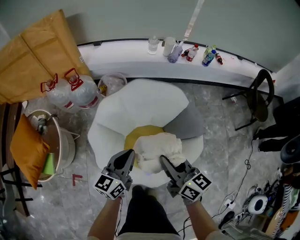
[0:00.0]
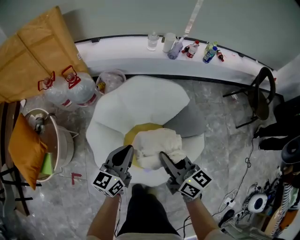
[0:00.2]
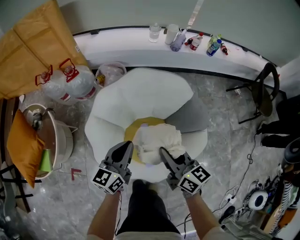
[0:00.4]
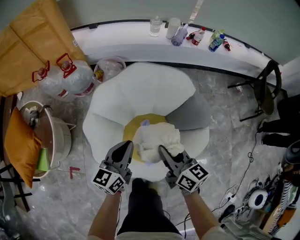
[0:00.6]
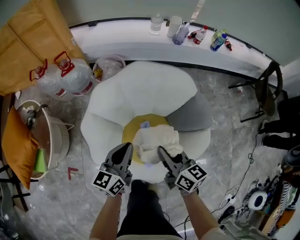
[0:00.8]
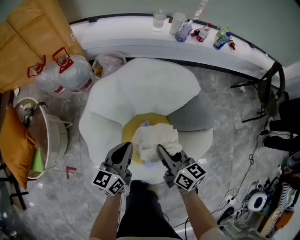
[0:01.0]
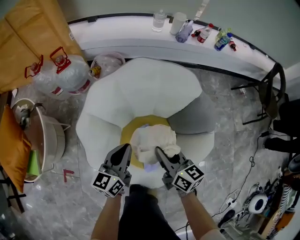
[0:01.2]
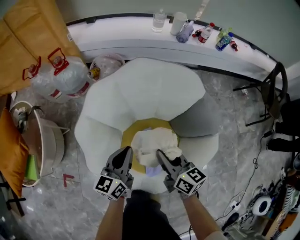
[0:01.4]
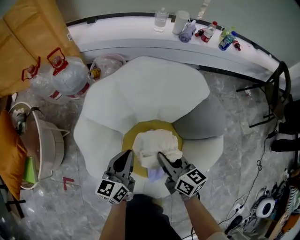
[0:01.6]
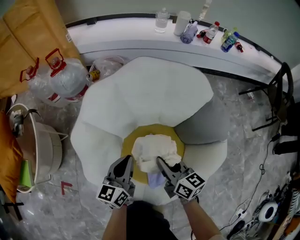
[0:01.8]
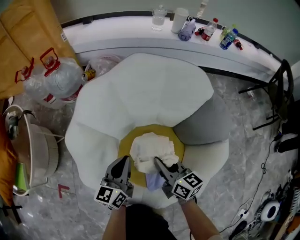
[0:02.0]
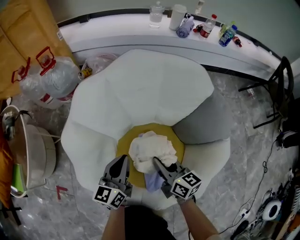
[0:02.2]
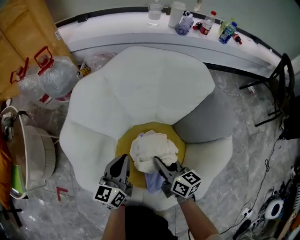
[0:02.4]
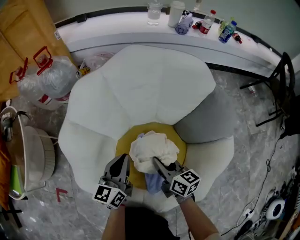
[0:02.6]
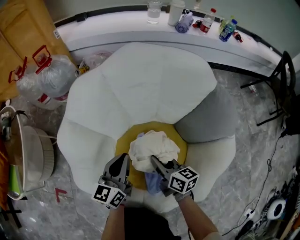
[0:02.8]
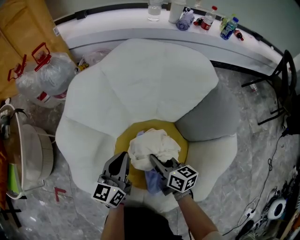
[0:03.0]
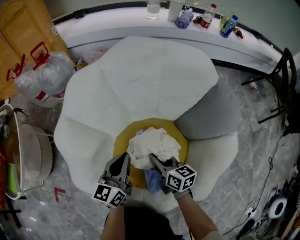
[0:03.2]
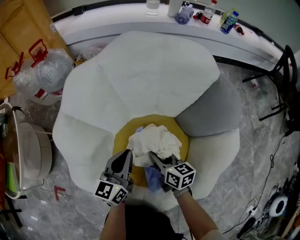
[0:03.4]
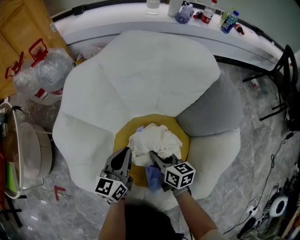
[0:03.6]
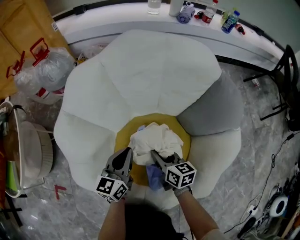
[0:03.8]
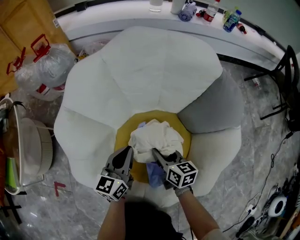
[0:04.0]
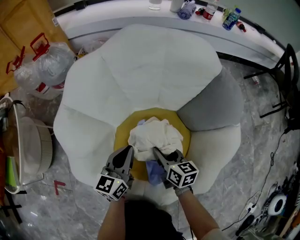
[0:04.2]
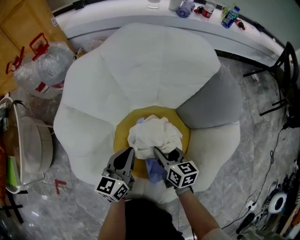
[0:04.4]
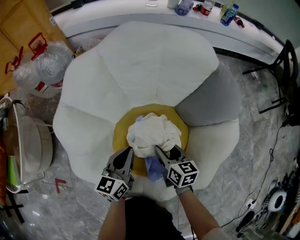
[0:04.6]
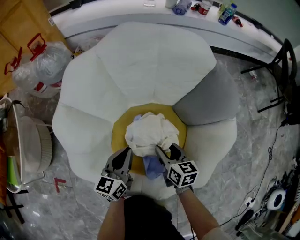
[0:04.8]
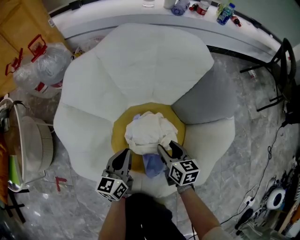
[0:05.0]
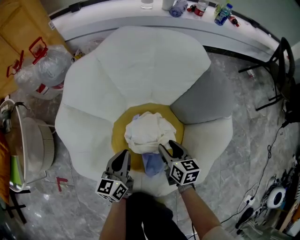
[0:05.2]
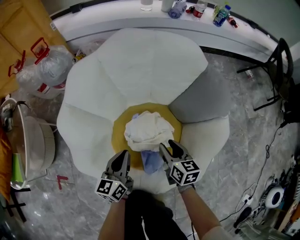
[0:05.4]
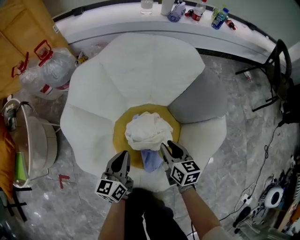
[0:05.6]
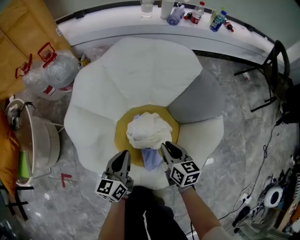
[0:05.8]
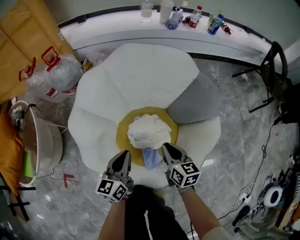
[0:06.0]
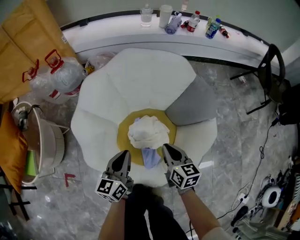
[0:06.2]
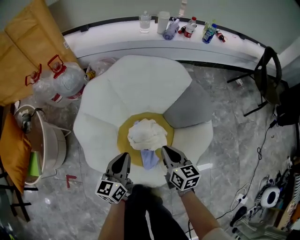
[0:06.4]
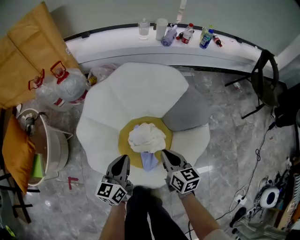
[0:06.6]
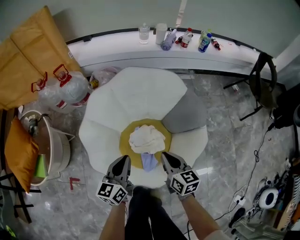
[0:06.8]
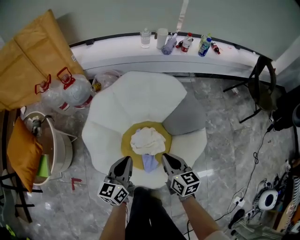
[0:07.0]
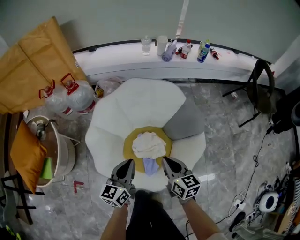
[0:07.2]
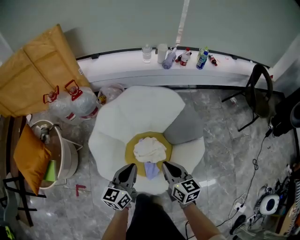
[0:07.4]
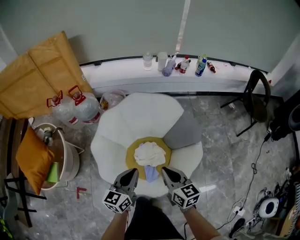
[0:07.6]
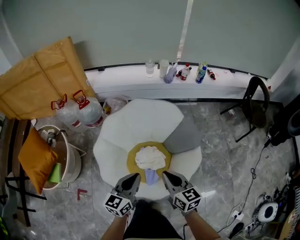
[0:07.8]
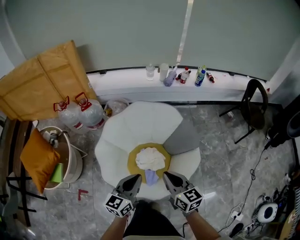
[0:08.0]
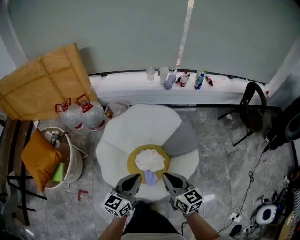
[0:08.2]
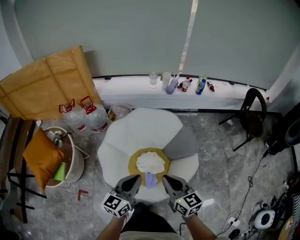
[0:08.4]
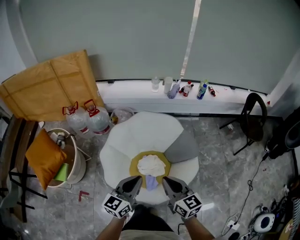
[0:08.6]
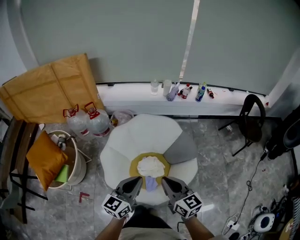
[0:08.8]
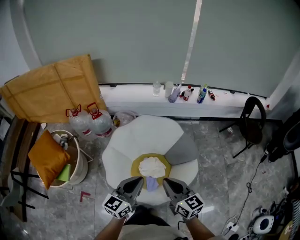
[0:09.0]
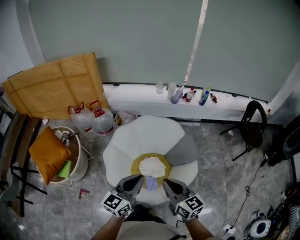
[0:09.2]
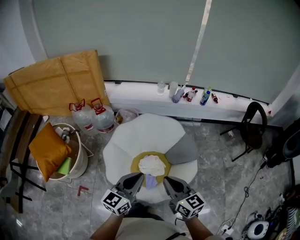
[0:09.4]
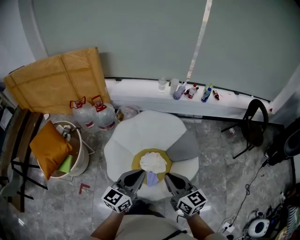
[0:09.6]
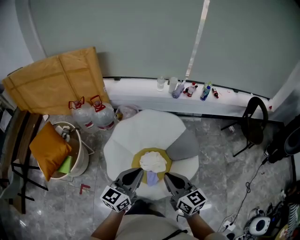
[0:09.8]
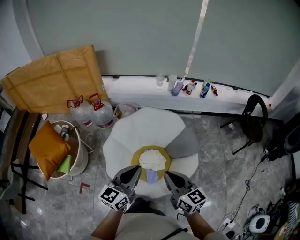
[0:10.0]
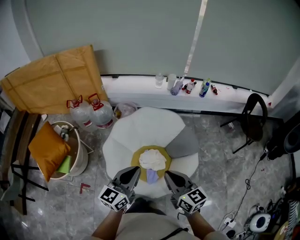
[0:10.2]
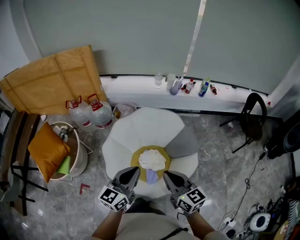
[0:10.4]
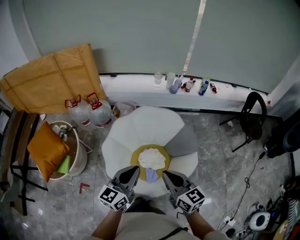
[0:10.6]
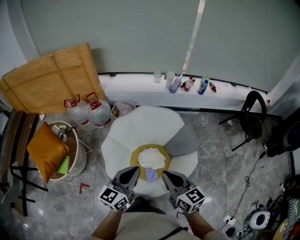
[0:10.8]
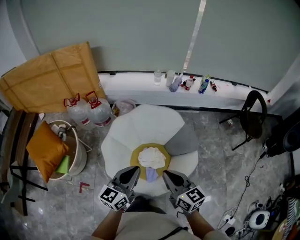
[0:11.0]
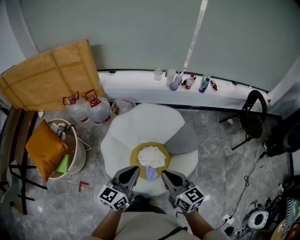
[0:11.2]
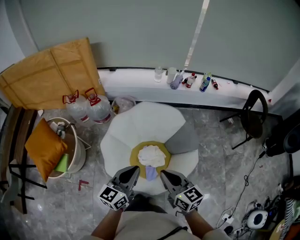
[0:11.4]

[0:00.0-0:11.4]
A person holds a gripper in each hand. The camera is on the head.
0.0 to 1.4 s: Both grippers travel together downward, some 25 cm.
1.4 to 2.8 s: The two grippers go about 20 cm downward.
2.8 to 4.2 s: The right gripper shifts by about 5 cm, and opens its fingers; the left gripper moves roughly 5 cm.
4.2 to 5.6 s: The left gripper shifts some 10 cm upward and backward. Meanwhile the right gripper goes approximately 10 cm upward and to the right.
5.6 to 7.2 s: The grippers both shift upward by roughly 30 cm. The right gripper closes its fingers.
7.2 to 8.6 s: Both grippers move upward and backward, roughly 25 cm.
8.6 to 10.0 s: Both grippers move upward, roughly 5 cm.
10.0 to 11.4 s: The right gripper ends up about 5 cm from where it was. Meanwhile the left gripper shifts by roughly 5 cm.

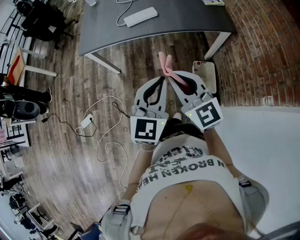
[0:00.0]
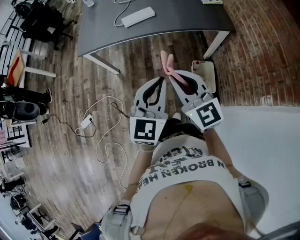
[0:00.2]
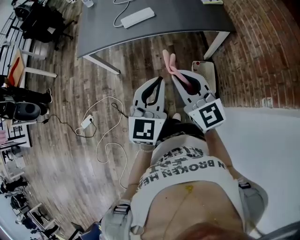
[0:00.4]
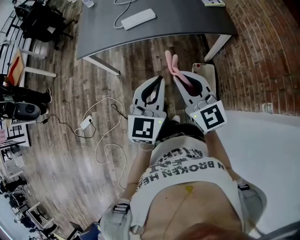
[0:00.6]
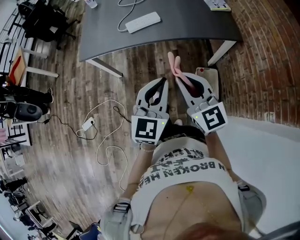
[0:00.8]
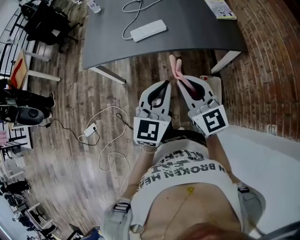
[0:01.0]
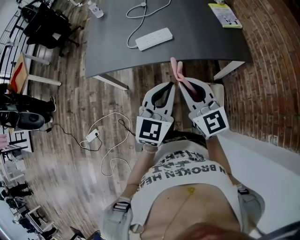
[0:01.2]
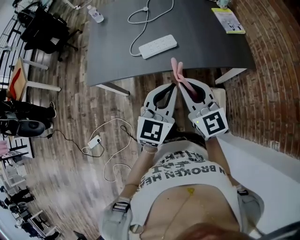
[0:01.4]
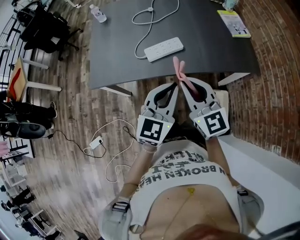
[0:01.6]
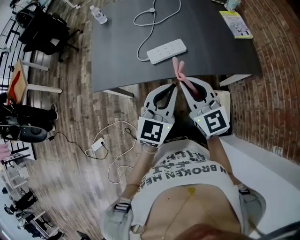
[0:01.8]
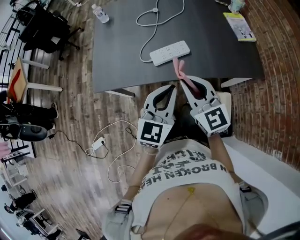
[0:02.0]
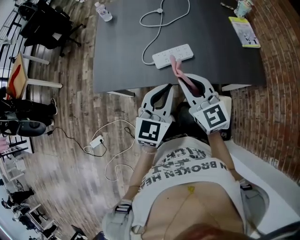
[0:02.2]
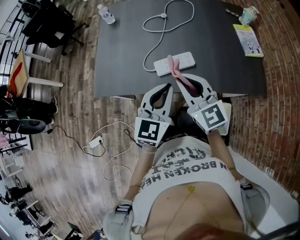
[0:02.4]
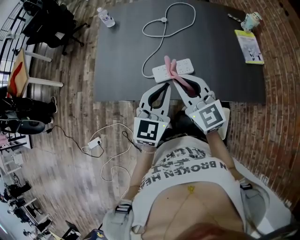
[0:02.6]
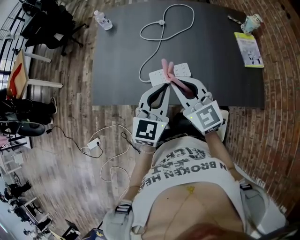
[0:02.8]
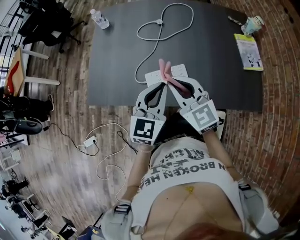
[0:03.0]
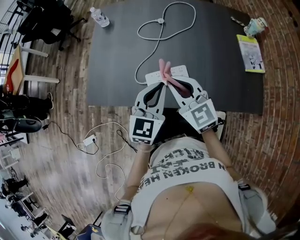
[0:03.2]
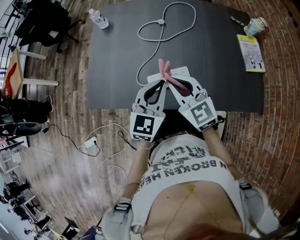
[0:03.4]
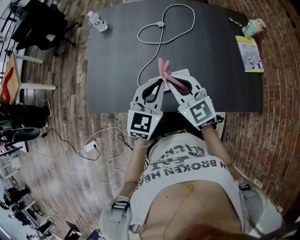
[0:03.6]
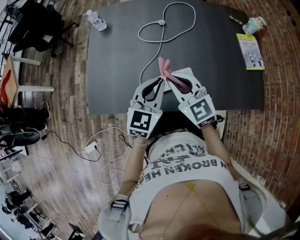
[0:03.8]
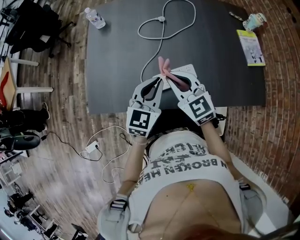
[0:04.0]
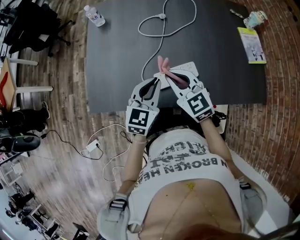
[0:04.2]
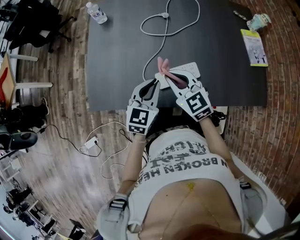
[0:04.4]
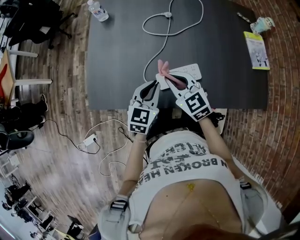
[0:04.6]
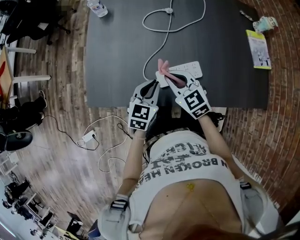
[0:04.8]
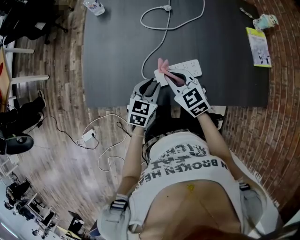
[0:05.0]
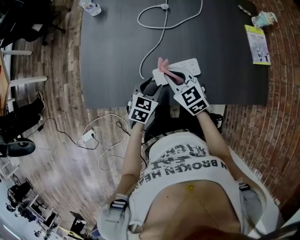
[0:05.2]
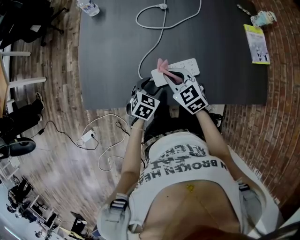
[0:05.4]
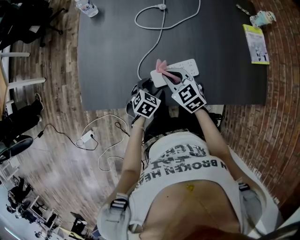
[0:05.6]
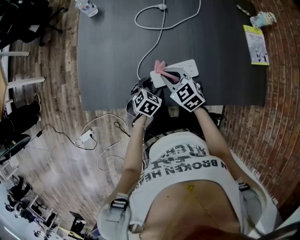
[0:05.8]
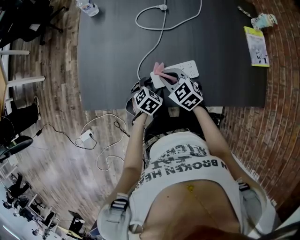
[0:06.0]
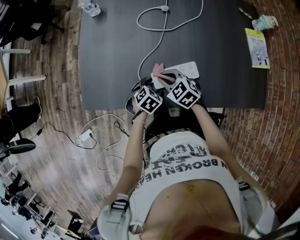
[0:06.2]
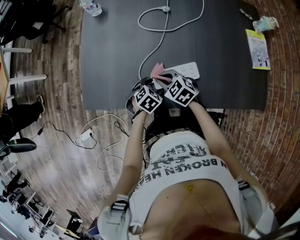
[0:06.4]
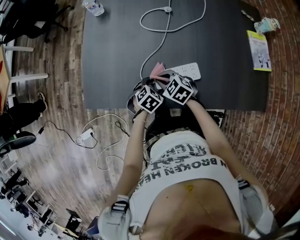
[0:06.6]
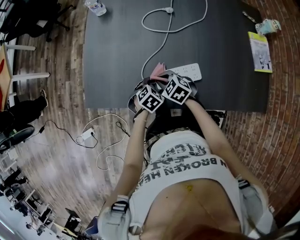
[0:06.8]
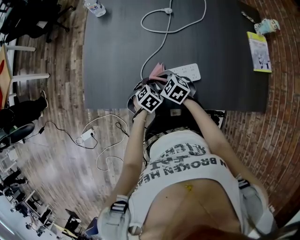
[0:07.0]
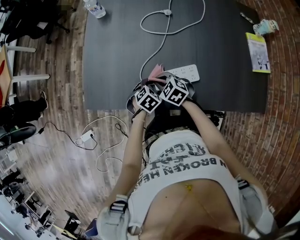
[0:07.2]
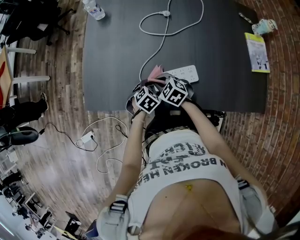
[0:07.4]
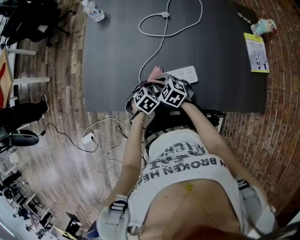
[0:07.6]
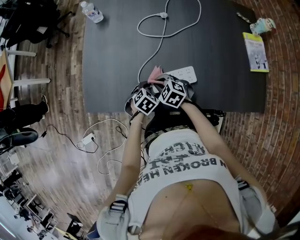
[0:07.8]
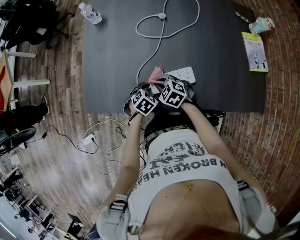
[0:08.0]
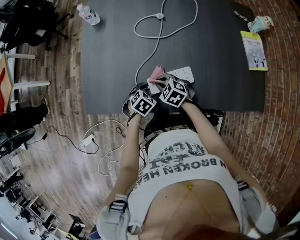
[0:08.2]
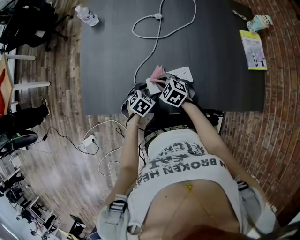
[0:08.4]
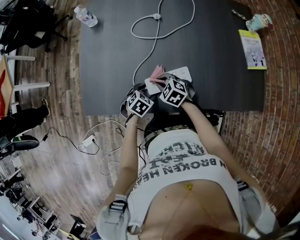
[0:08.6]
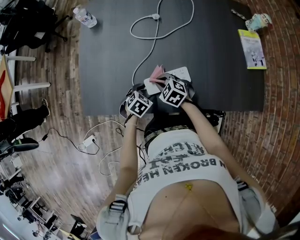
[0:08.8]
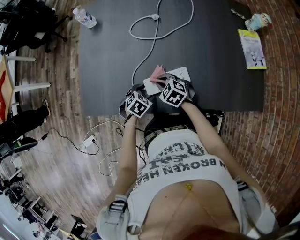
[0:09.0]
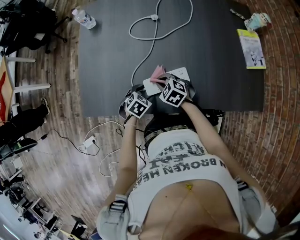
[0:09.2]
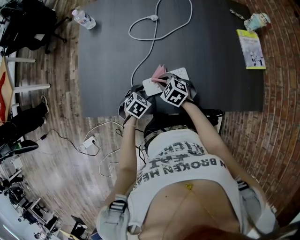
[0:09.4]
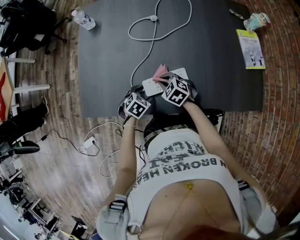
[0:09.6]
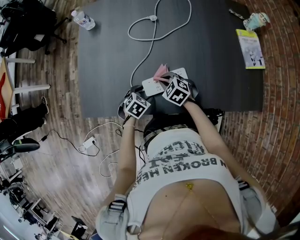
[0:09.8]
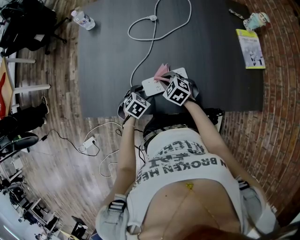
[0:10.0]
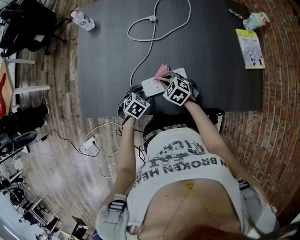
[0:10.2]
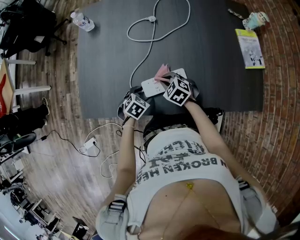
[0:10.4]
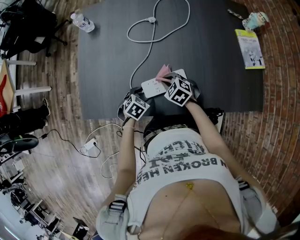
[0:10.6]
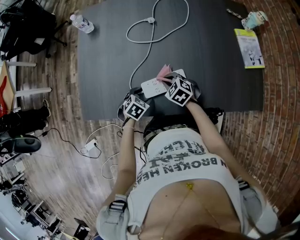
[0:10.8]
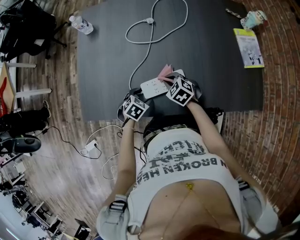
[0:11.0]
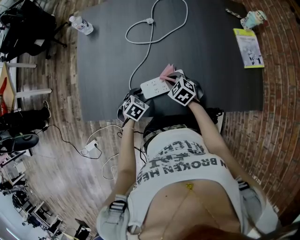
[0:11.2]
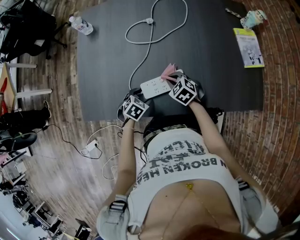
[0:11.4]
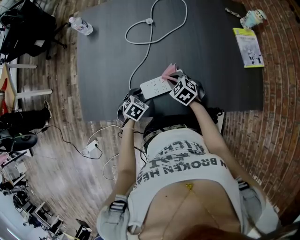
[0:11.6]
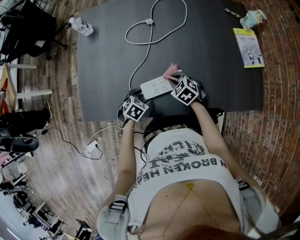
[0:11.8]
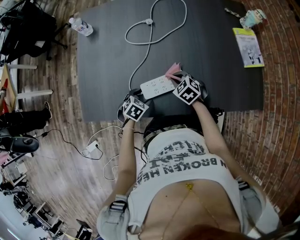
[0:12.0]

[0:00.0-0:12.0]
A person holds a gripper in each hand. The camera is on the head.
0.0 to 1.6 s: The grippers both shift forward by about 30 cm.
1.6 to 3.0 s: The two grippers go approximately 20 cm forward.
3.0 to 4.4 s: Both grippers travel together downward, to the left and forward, approximately 15 cm.
4.4 to 6.0 s: The right gripper travels downward by roughly 10 cm, and swivels approximately 20 degrees, while the left gripper travels downward by approximately 20 cm, points its fingers some 40 degrees further downward, and opens up.
6.0 to 7.6 s: The right gripper travels downward by roughly 5 cm.
7.6 to 9.0 s: The right gripper goes some 5 cm to the right.
9.0 to 10.4 s: There are only small adjustments of the grippers.
10.4 to 12.0 s: The right gripper moves to the right, roughly 5 cm.

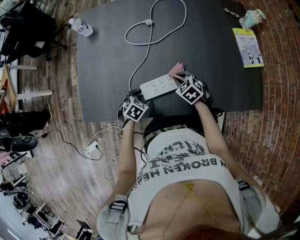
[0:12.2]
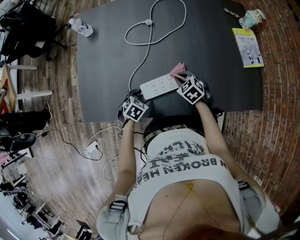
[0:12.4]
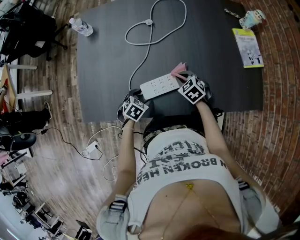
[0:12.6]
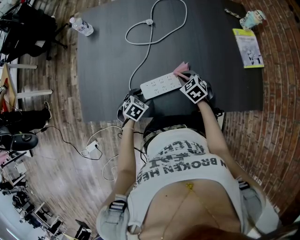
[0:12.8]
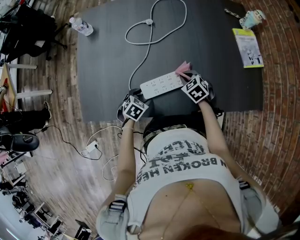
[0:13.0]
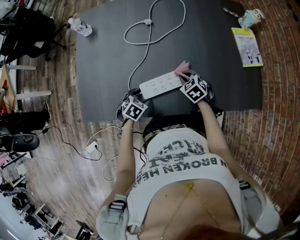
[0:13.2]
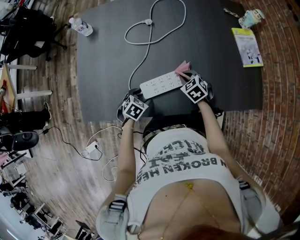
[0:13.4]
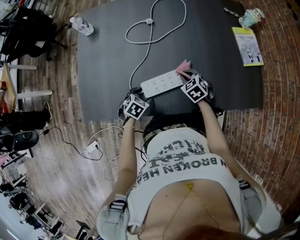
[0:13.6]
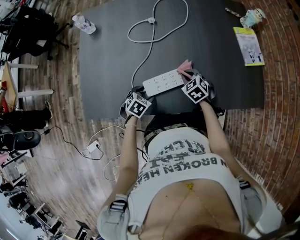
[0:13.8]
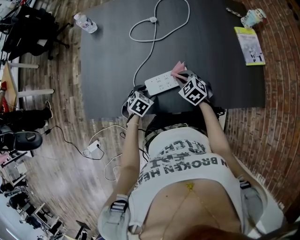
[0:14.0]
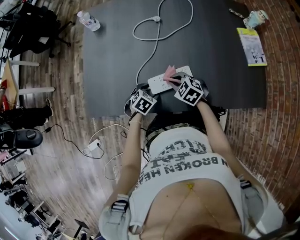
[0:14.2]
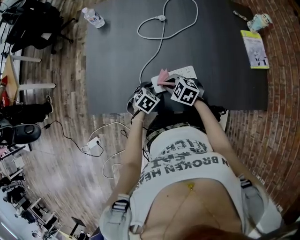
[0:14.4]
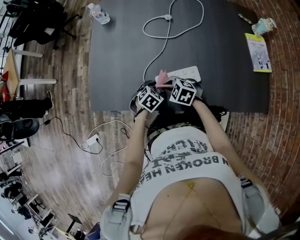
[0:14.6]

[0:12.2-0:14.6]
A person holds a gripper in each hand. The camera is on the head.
12.2 to 13.4 s: The grippers move only a little.
13.4 to 14.6 s: The right gripper shifts by roughly 20 cm, and turns by about 40 degrees.
